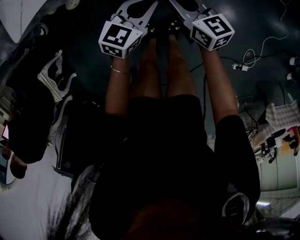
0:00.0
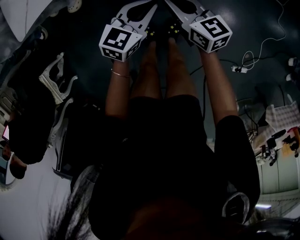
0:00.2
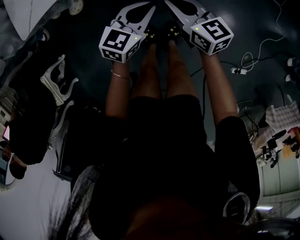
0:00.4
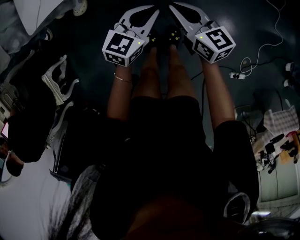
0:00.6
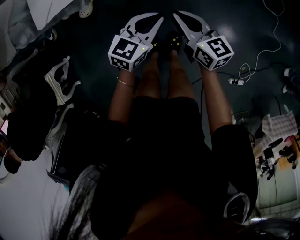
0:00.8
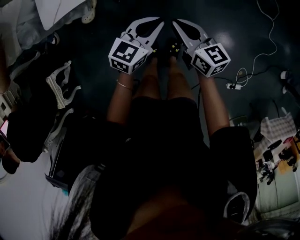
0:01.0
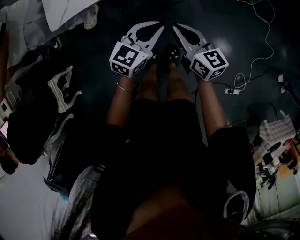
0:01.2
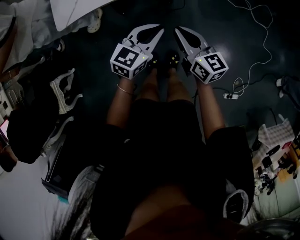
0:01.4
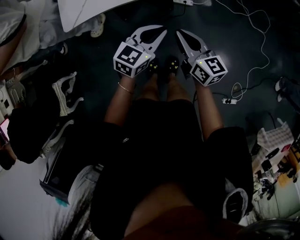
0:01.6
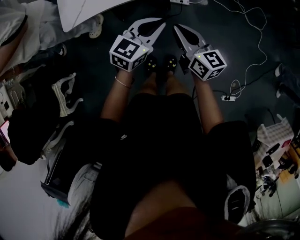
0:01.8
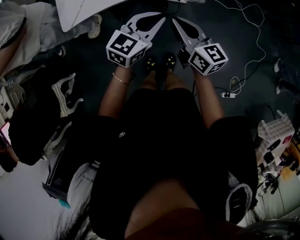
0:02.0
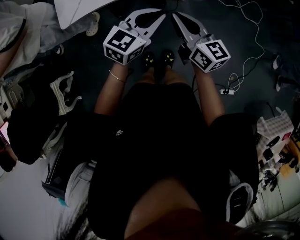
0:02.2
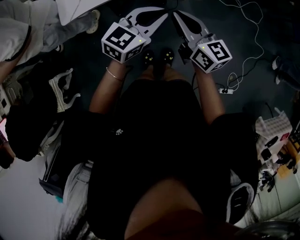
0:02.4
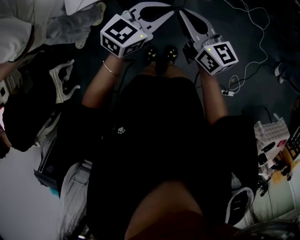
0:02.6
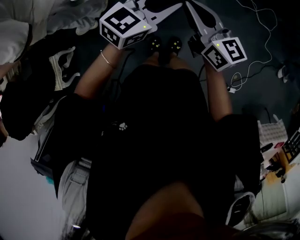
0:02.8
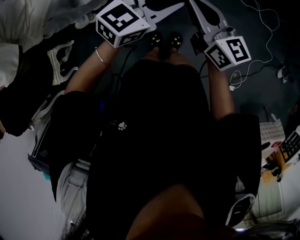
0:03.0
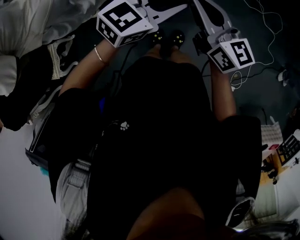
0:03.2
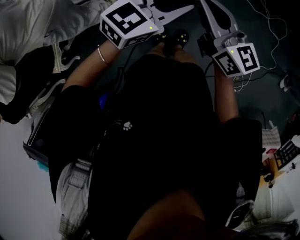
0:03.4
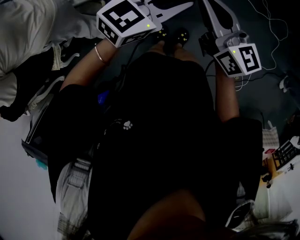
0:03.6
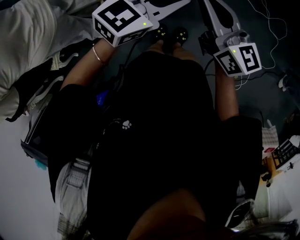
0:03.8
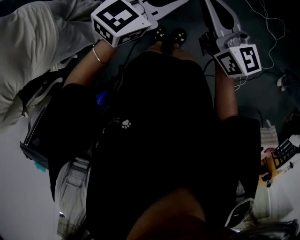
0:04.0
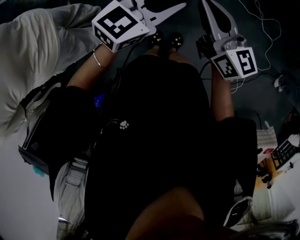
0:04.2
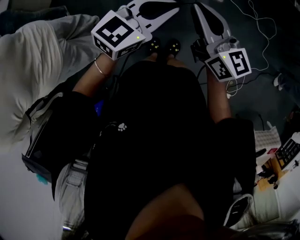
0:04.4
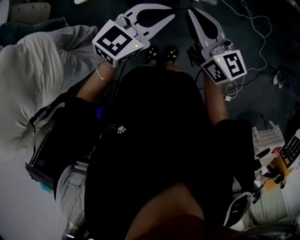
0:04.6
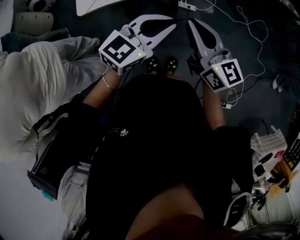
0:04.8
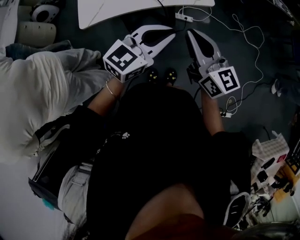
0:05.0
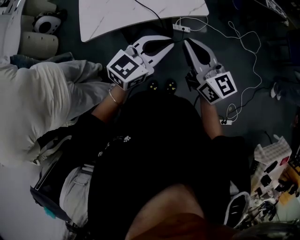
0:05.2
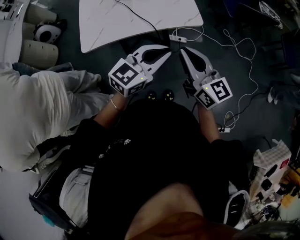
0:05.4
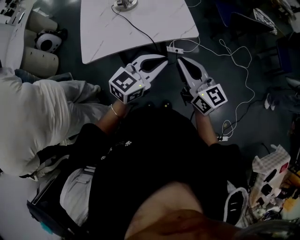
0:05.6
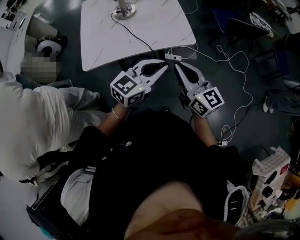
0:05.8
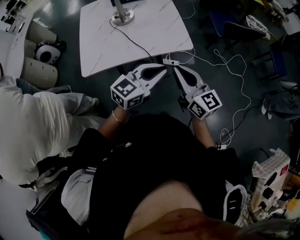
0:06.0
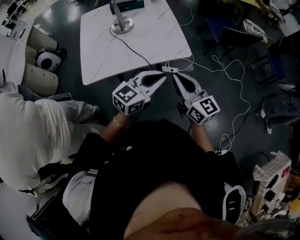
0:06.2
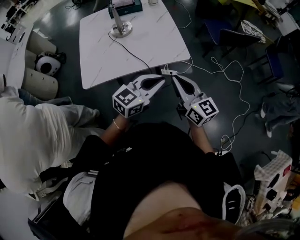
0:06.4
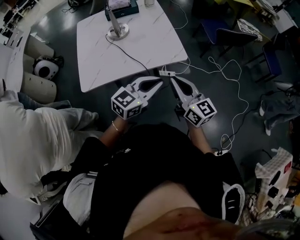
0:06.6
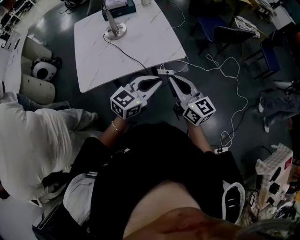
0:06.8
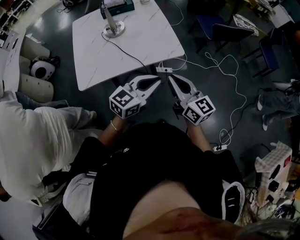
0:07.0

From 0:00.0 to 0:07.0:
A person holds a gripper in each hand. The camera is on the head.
From 0:00.0 to 0:01.4: Both grippers move upward, about 15 cm.
From 0:01.4 to 0:02.8: Both grippers move upward, roughly 15 cm.
From 0:02.8 to 0:04.2: The left gripper ends up about 5 cm from where it was.
From 0:04.2 to 0:05.6: Both grippers travel together to the right, approximately 5 cm.
From 0:05.6 to 0:07.0: There are only small adjustments of the grippers.

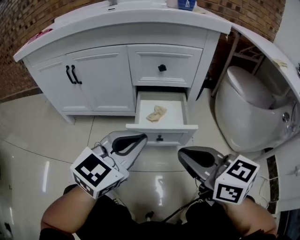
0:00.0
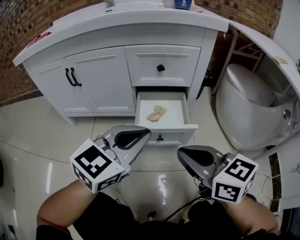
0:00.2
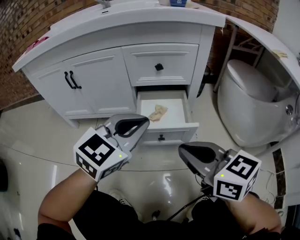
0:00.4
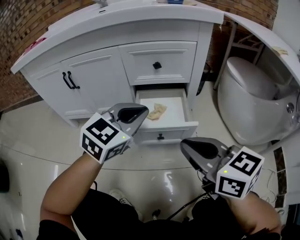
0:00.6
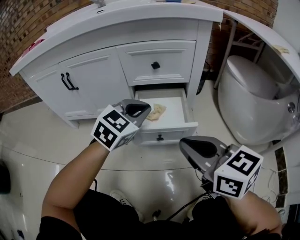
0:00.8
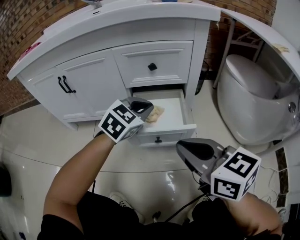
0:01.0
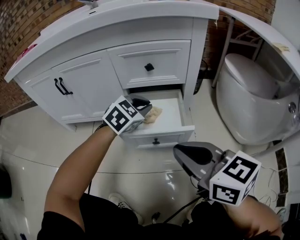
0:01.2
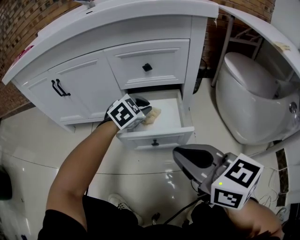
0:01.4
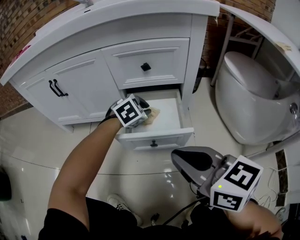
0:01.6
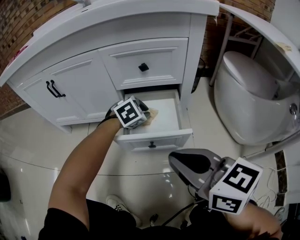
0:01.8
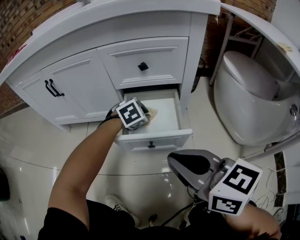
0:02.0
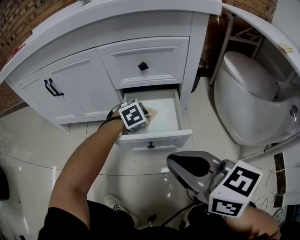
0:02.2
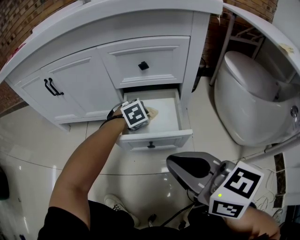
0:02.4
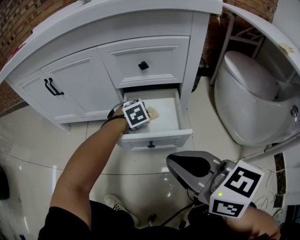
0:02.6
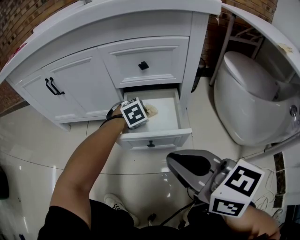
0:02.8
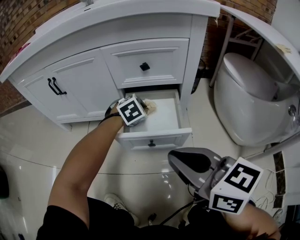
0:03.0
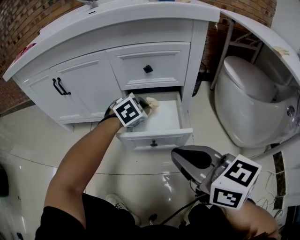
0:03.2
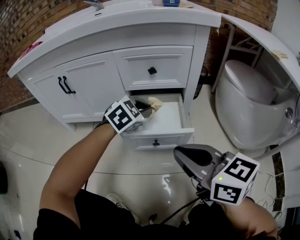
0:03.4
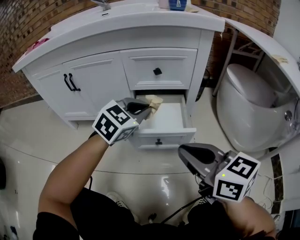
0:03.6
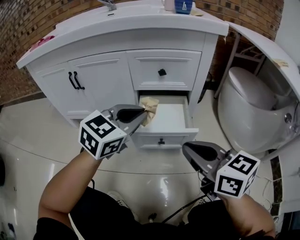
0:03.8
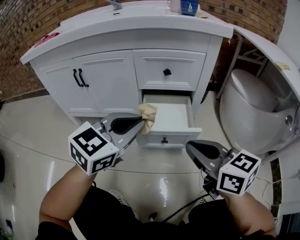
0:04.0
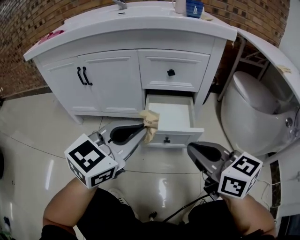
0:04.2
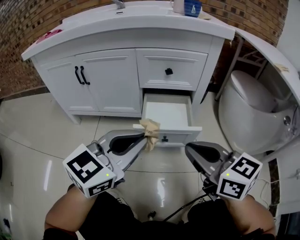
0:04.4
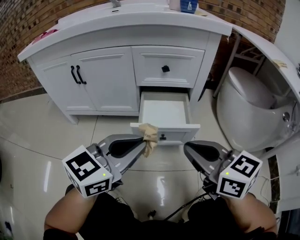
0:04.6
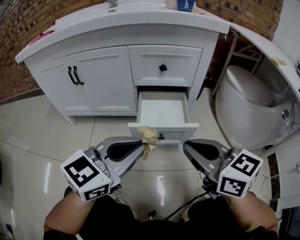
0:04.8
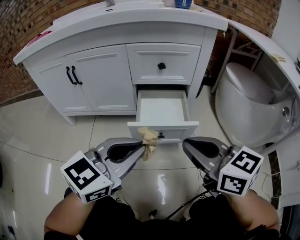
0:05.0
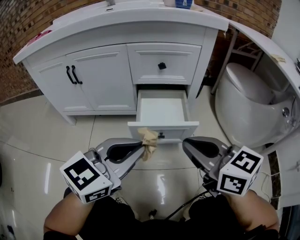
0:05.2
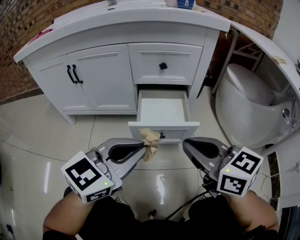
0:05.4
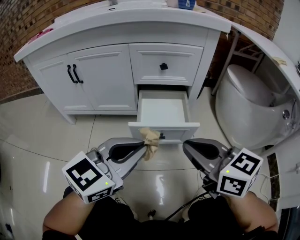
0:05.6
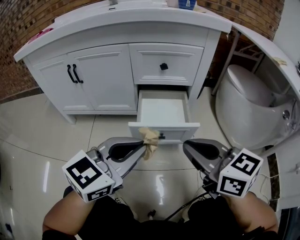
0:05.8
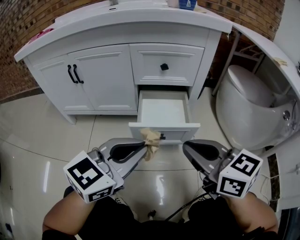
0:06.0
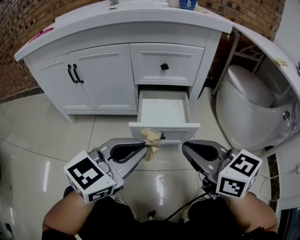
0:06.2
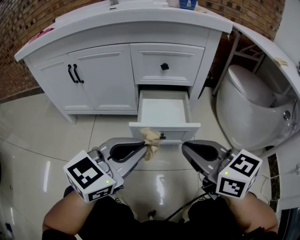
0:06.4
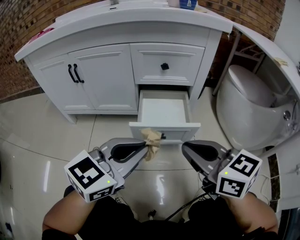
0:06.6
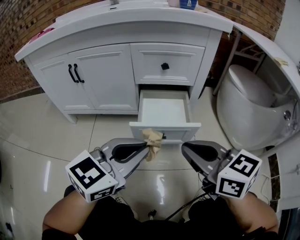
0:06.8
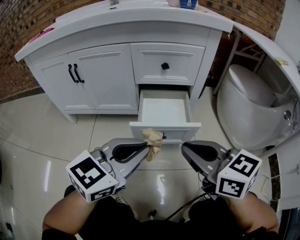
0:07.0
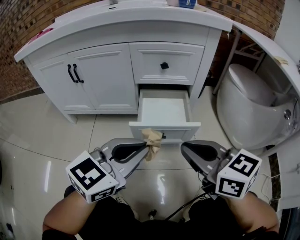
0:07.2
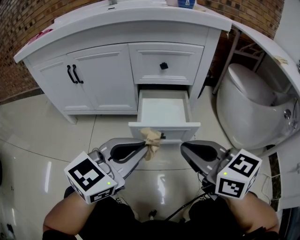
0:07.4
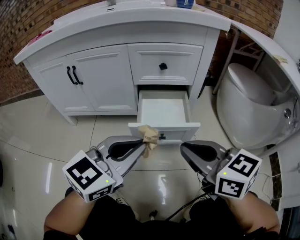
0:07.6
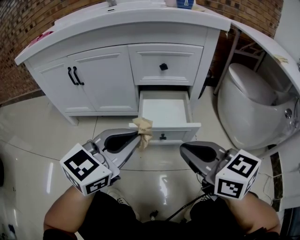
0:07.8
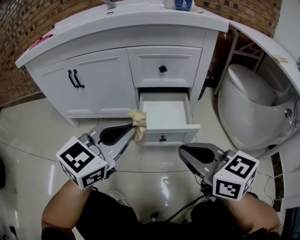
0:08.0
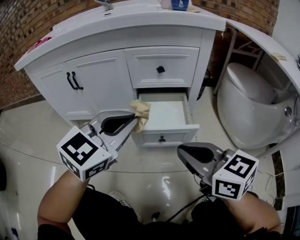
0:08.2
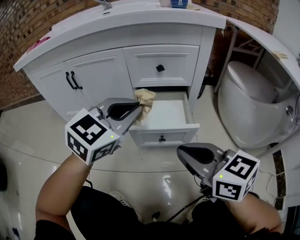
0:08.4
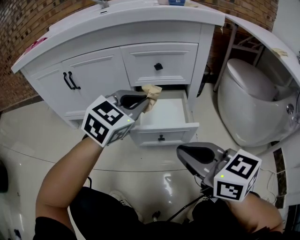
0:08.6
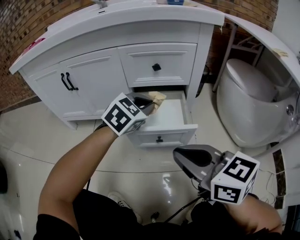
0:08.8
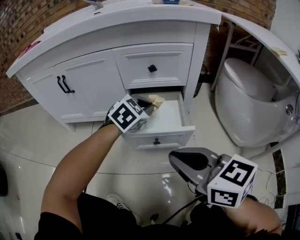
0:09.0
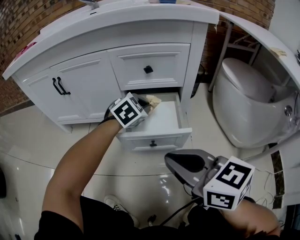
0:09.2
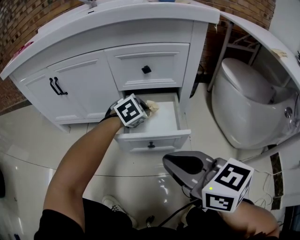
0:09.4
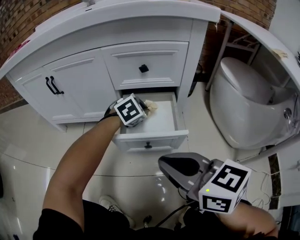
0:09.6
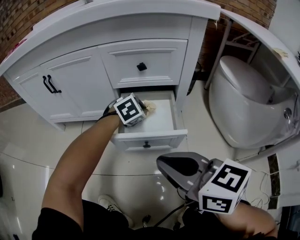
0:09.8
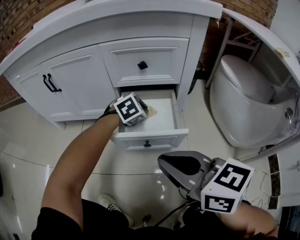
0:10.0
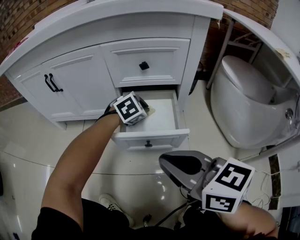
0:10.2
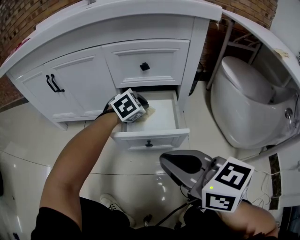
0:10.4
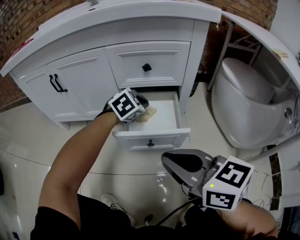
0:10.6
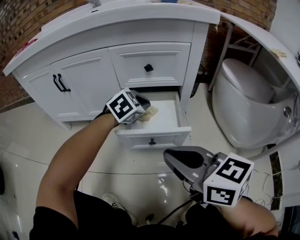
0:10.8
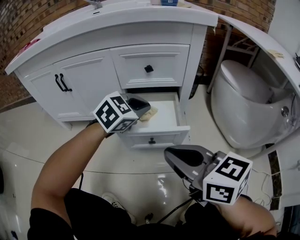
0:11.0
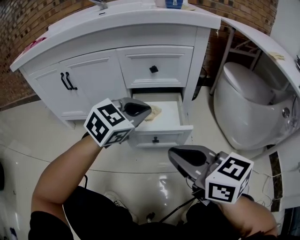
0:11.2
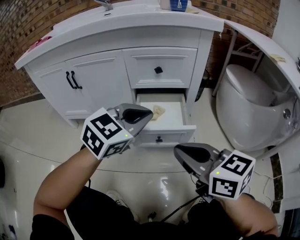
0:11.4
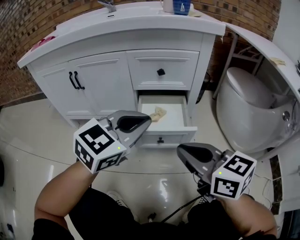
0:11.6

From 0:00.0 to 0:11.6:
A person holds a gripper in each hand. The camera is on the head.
From 0:00.0 to 0:01.4: The left gripper is displaced forward and downward by some 25 cm, and points its fingers roughly 30 degrees further downward.
From 0:01.4 to 0:02.8: The left gripper travels downward by some 10 cm.
From 0:02.8 to 0:04.4: The left gripper heads upward and backward, covering approximately 35 cm, and tips its fingers upward by some 50 degrees.
From 0:04.4 to 0:05.8: The grippers stay close to where they were, moving slightly.
From 0:05.8 to 0:07.2: The two grippers keep their place.
From 0:07.2 to 0:08.8: The left gripper goes about 20 cm forward, and turns by roughly 30 degrees.
From 0:08.8 to 0:10.2: The left gripper goes about 15 cm downward and forward.
From 0:10.2 to 0:11.6: The left gripper shifts some 30 cm upward and backward, and tilts its fingers roughly 30 degrees upward.

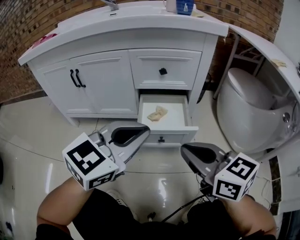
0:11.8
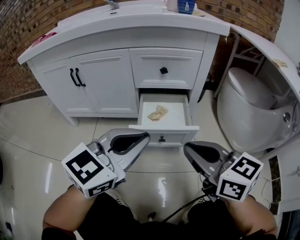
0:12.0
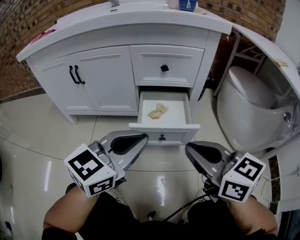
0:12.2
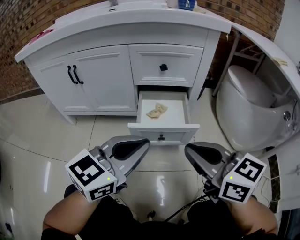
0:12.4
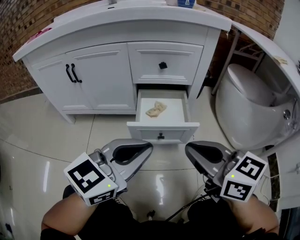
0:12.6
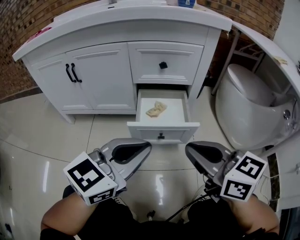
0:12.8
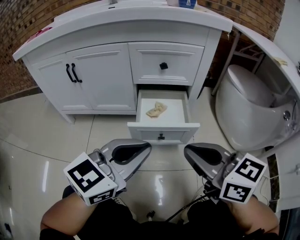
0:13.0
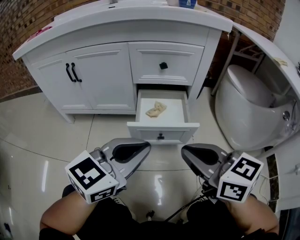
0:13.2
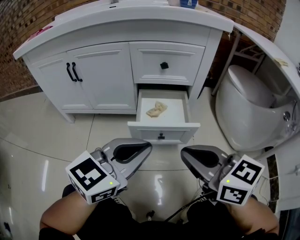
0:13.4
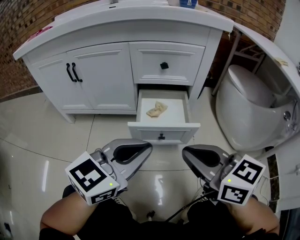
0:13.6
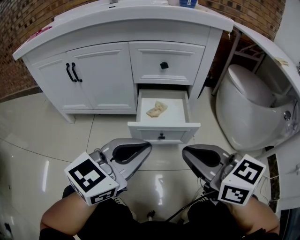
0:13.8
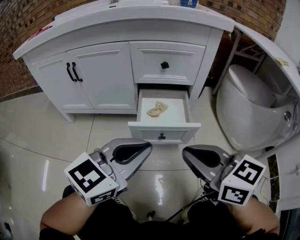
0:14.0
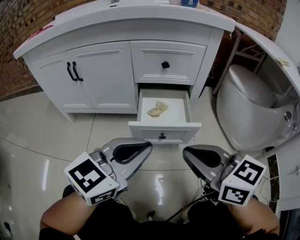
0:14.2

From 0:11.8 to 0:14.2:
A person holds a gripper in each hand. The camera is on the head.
From 0:11.8 to 0:13.0: The grippers make only small movements.
From 0:13.0 to 0:14.2: The two grippers keep their place.

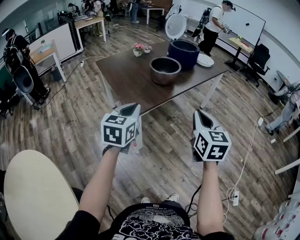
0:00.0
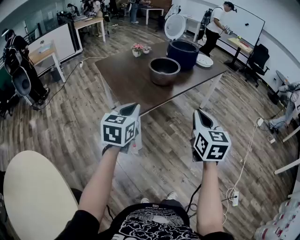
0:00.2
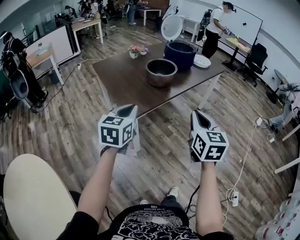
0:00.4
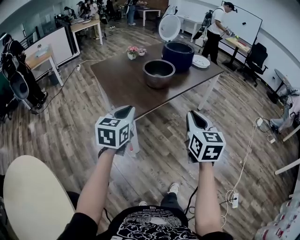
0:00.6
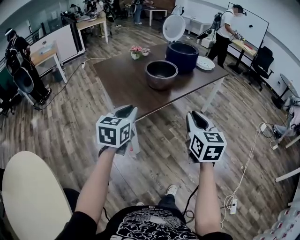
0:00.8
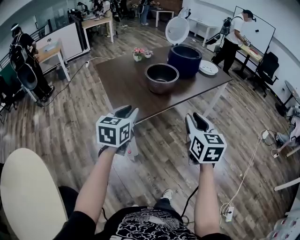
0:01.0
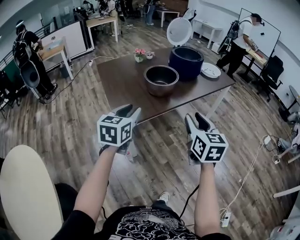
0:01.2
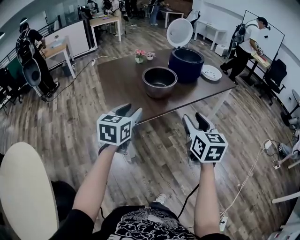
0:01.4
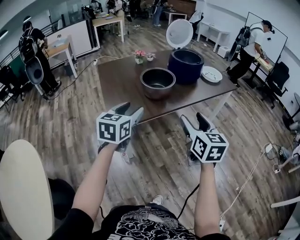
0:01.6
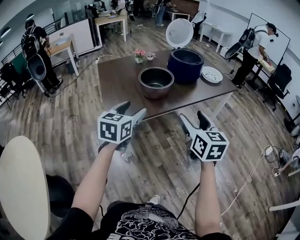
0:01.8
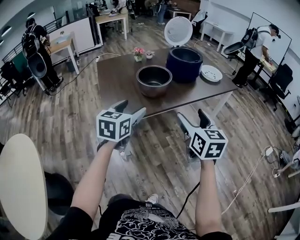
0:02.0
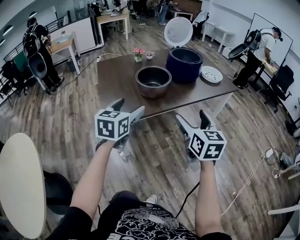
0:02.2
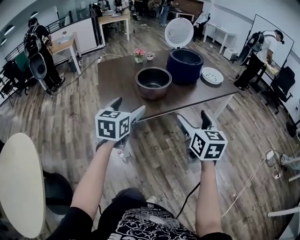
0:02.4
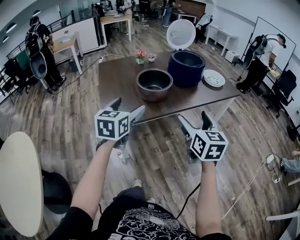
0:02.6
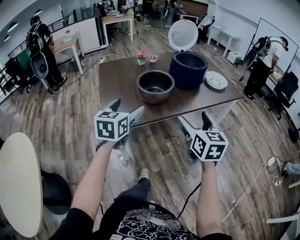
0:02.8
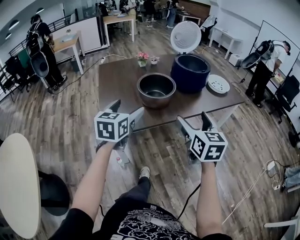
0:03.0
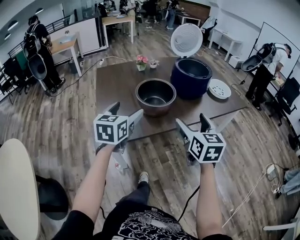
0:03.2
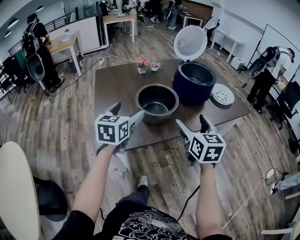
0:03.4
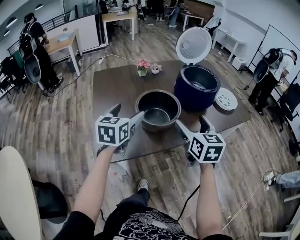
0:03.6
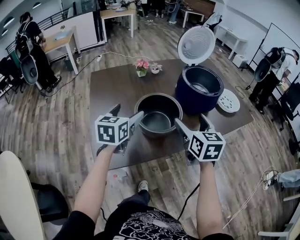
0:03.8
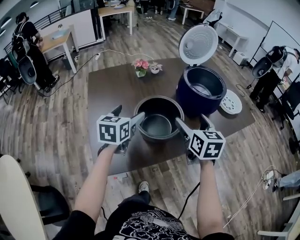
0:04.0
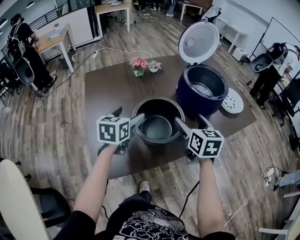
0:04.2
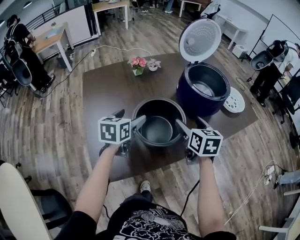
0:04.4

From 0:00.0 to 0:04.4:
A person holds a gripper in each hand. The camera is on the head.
From 0:00.0 to 0:01.4: Both grippers move forward and to the right, approximately 15 cm. The left gripper opens its fingers. Meanwhile the right gripper opens up.
From 0:01.4 to 0:03.0: The left gripper goes roughly 10 cm forward, and opens its fingers. Meanwhile the right gripper moves forward and to the right, approximately 15 cm, and opens.
From 0:03.0 to 0:04.4: Both grippers move forward, approximately 30 cm.
